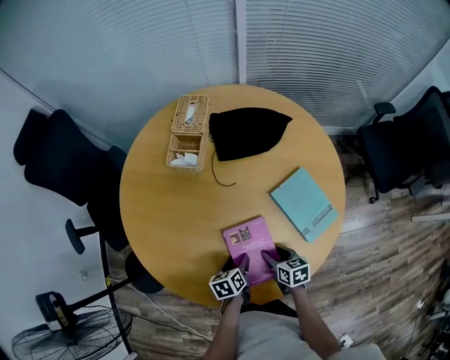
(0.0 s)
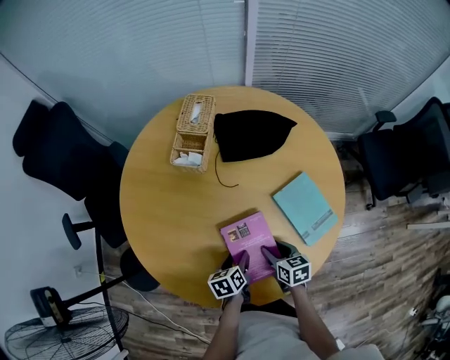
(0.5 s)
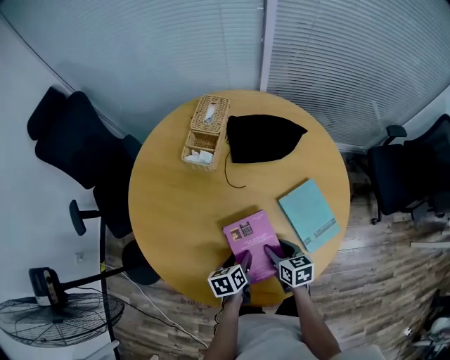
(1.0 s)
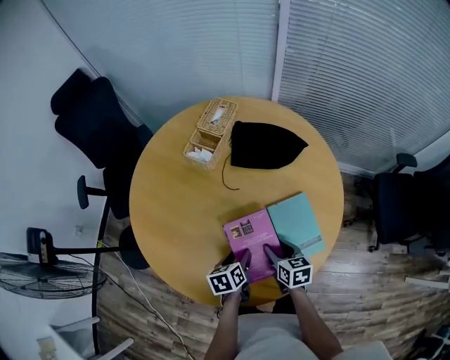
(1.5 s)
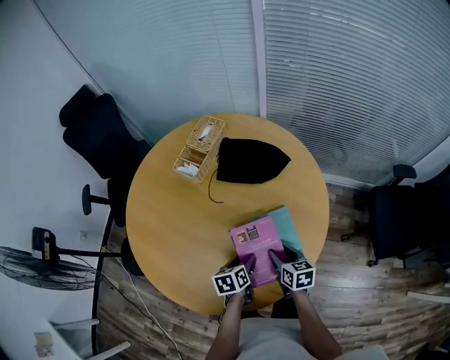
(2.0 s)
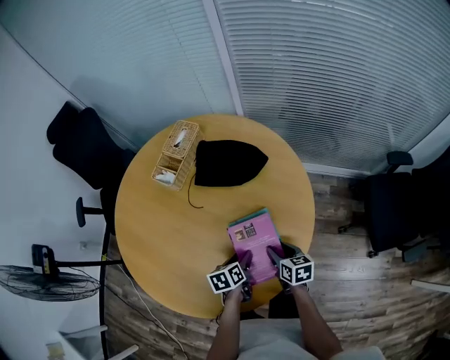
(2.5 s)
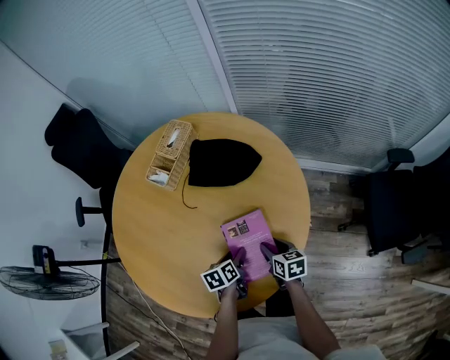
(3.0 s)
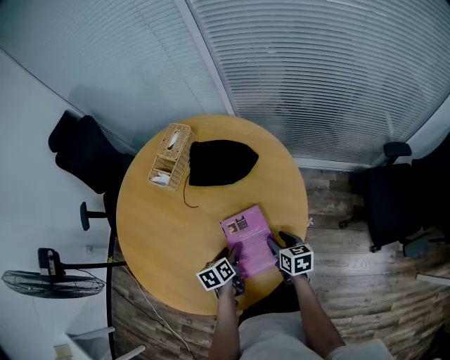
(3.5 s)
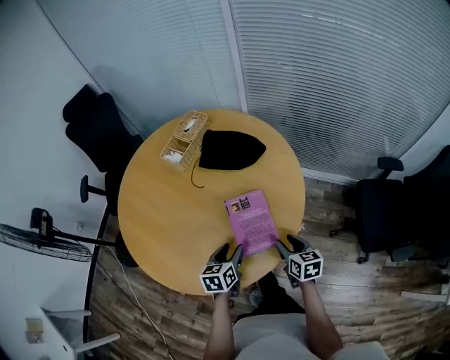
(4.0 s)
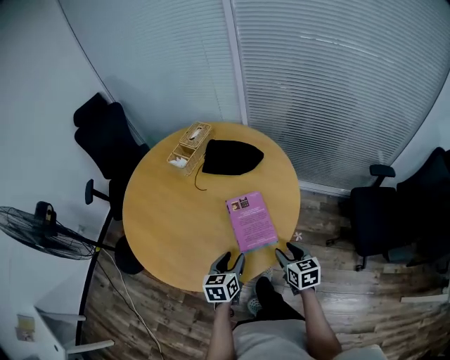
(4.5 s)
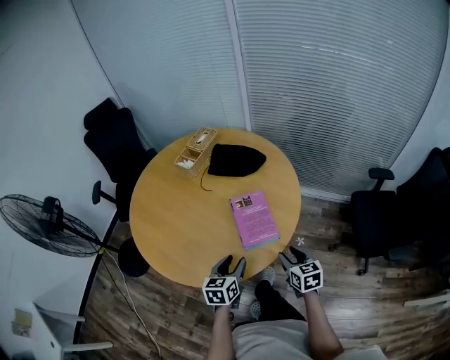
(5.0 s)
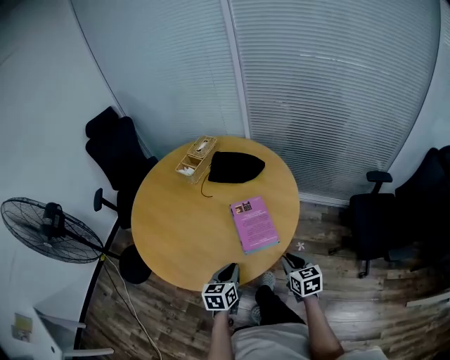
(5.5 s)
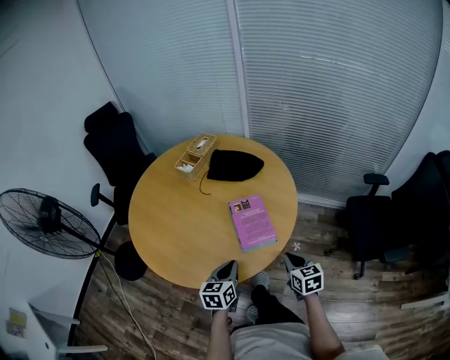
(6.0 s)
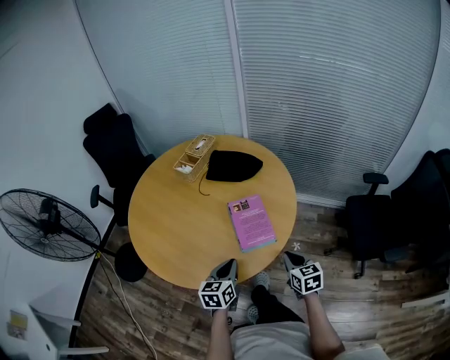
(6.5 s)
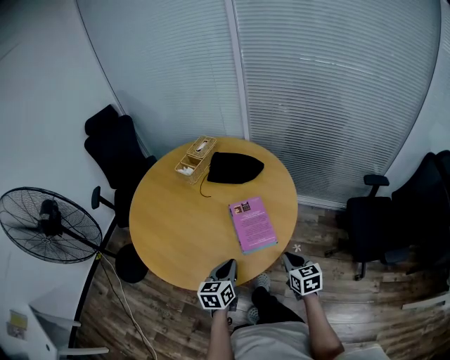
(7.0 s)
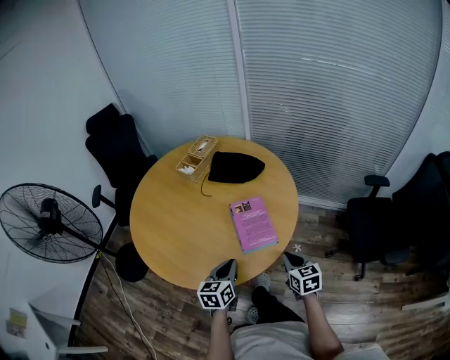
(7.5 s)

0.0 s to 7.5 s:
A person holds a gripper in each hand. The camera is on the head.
0.0 to 2.0 s: The left gripper heads to the right and upward, covering approximately 20 cm; the right gripper heads to the right, forward and upward, covering about 20 cm.
2.0 to 4.0 s: The left gripper moves to the right, about 5 cm. The right gripper moves to the right and backward, roughly 15 cm.
4.0 to 5.5 s: Both grippers move backward, about 10 cm. The left gripper closes its fingers, while the right gripper closes up.
5.5 to 7.5 s: There are only small adjustments of the grippers.

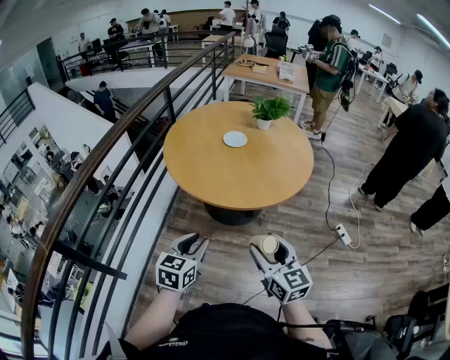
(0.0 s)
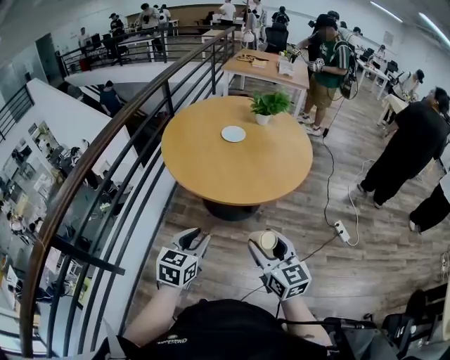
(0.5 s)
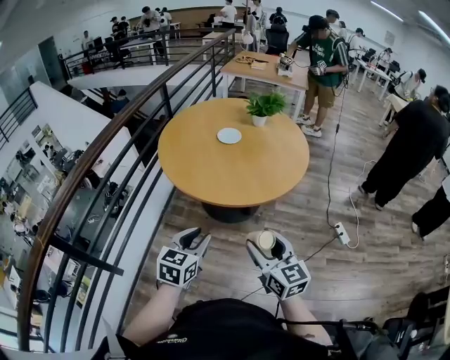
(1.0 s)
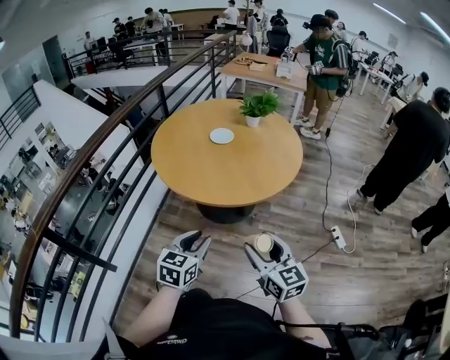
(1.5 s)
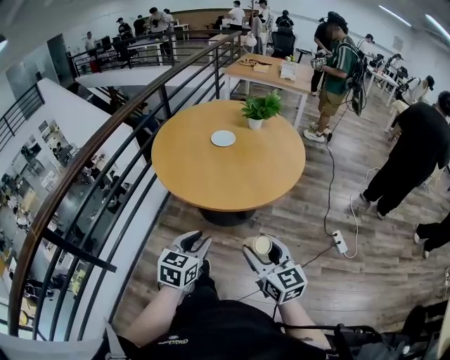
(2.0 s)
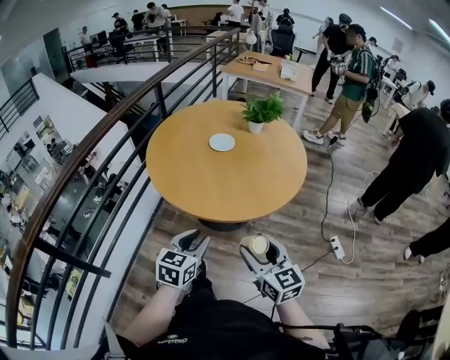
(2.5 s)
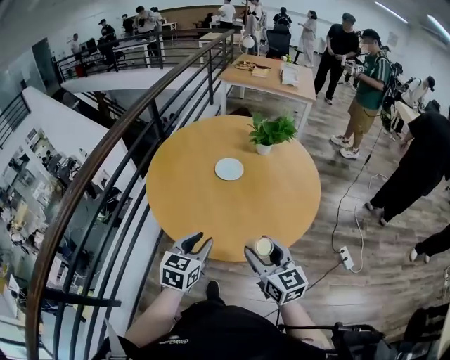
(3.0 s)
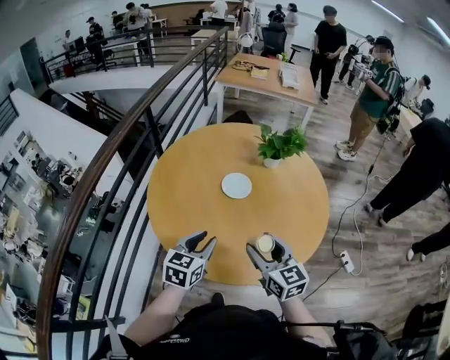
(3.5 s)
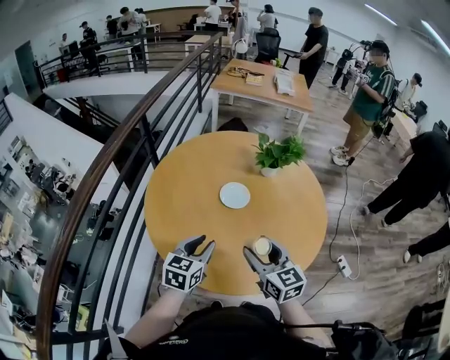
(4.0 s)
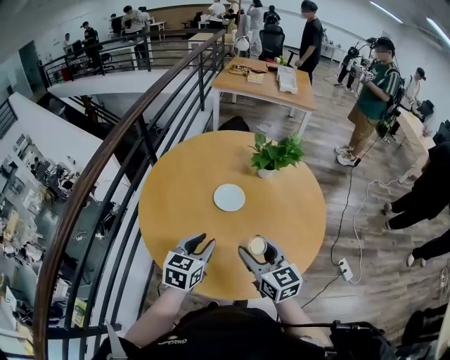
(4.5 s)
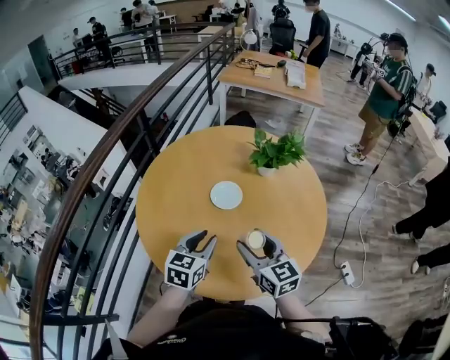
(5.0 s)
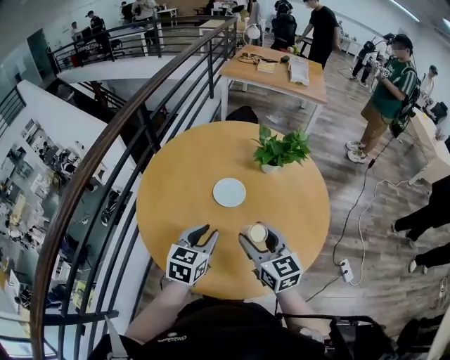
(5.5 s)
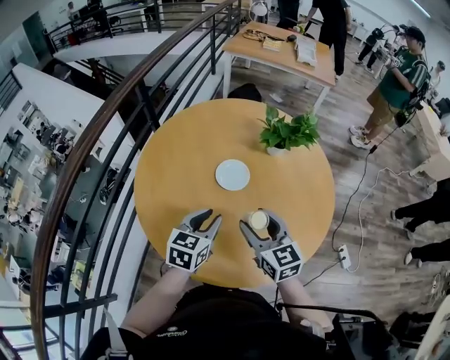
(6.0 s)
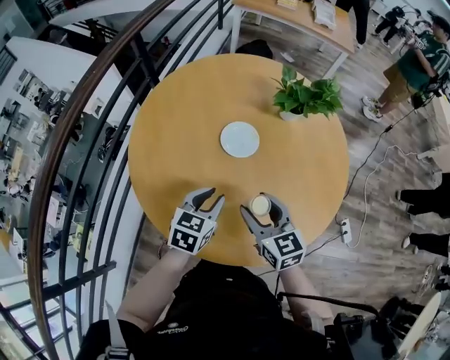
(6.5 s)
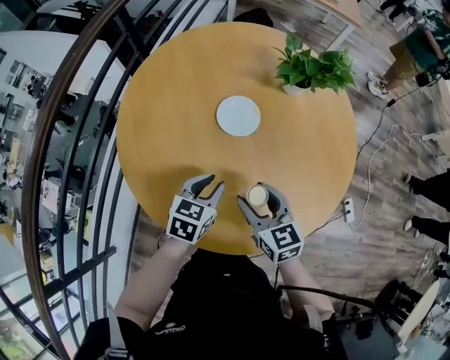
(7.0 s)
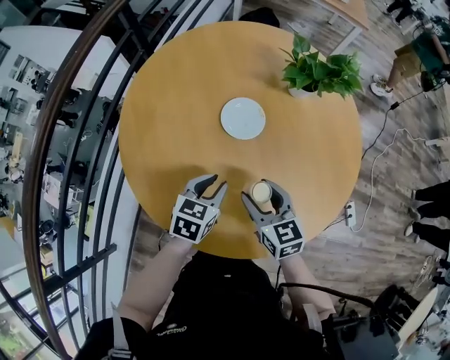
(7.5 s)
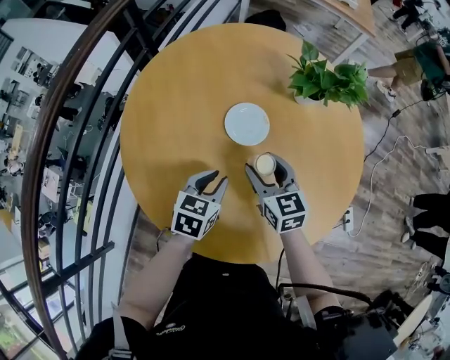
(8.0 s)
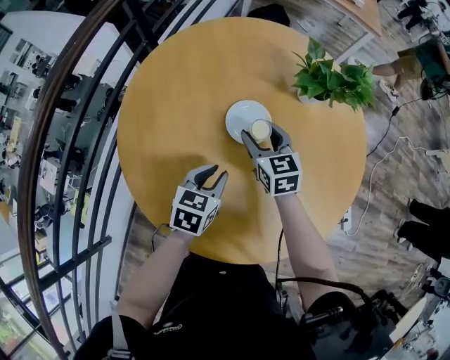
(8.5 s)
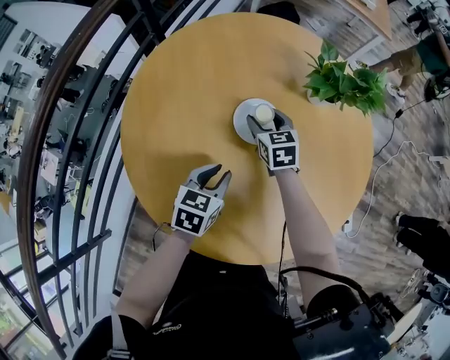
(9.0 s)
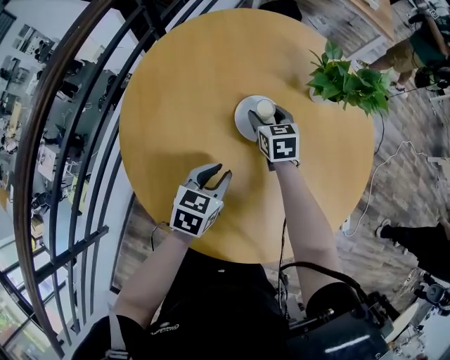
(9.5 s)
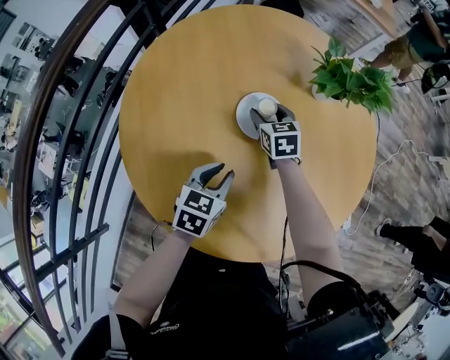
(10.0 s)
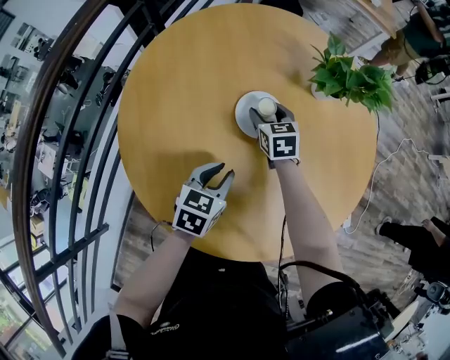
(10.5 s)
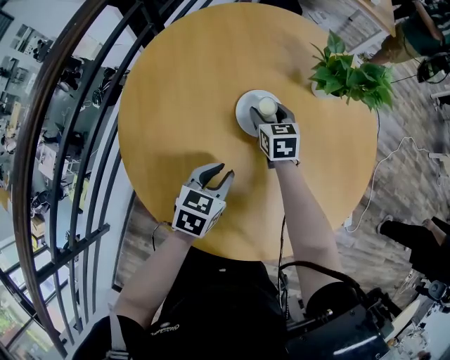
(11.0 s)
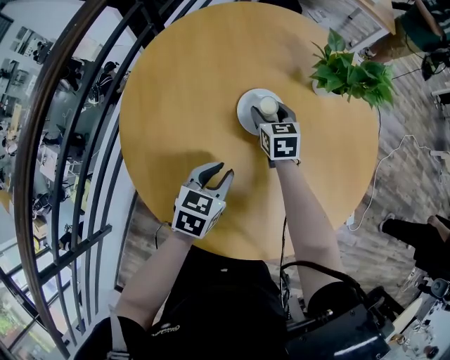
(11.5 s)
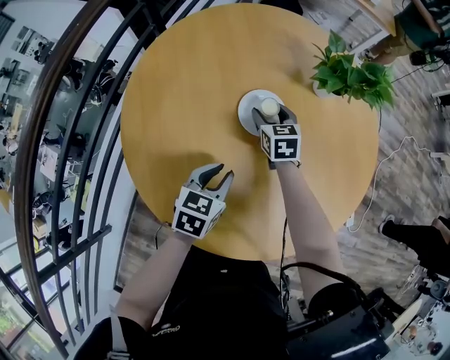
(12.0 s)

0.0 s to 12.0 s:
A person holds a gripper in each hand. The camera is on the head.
0.0 to 2.0 s: Both grippers travel together to the right, roughly 10 cm.
2.0 to 4.0 s: The two grippers travel together, forward, approximately 40 cm.
4.0 to 6.0 s: The left gripper is displaced to the right and forward by some 10 cm. Meanwhile the right gripper shifts some 10 cm forward.
6.0 to 8.0 s: The grippers both shift downward and forward by about 15 cm.
8.0 to 10.0 s: The right gripper heads forward and downward, covering approximately 20 cm.
10.0 to 12.0 s: The two grippers keep their place.

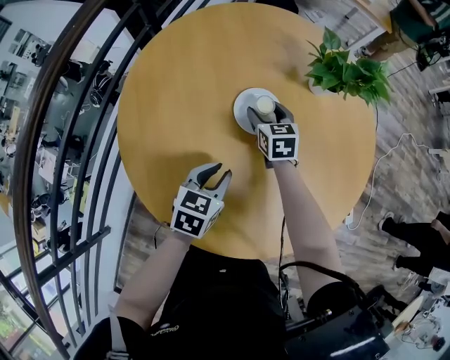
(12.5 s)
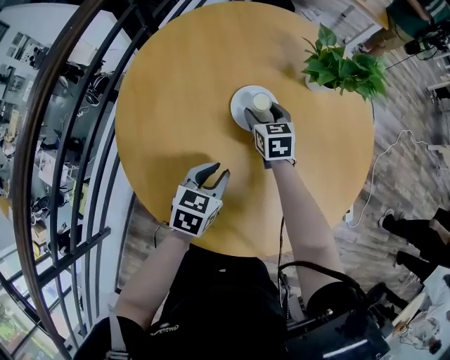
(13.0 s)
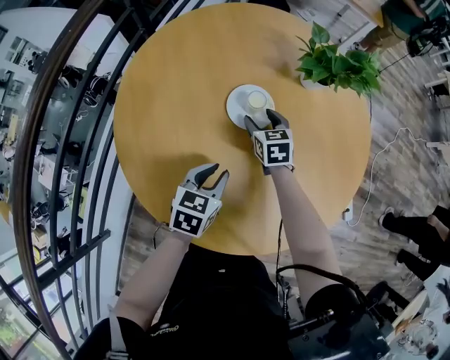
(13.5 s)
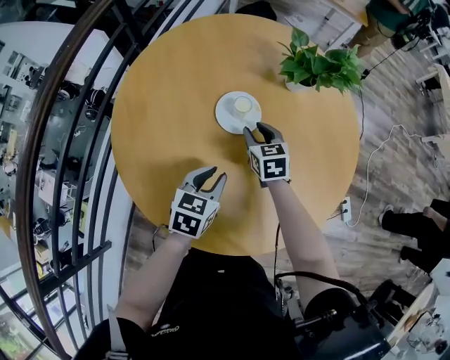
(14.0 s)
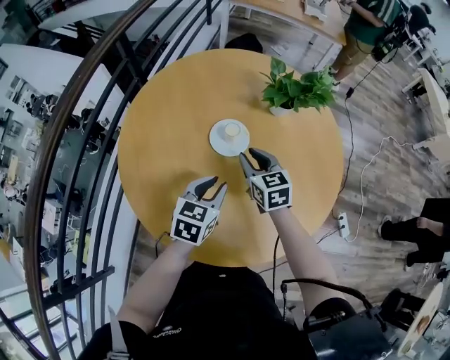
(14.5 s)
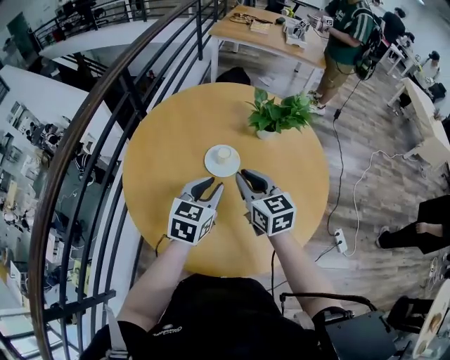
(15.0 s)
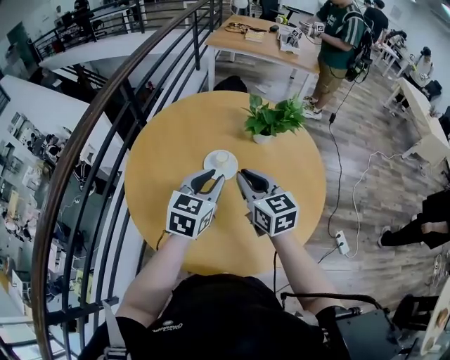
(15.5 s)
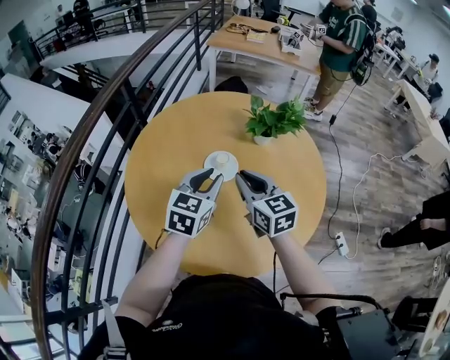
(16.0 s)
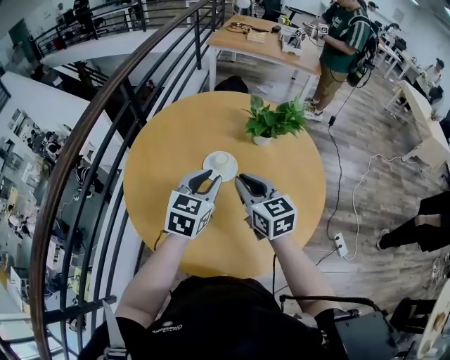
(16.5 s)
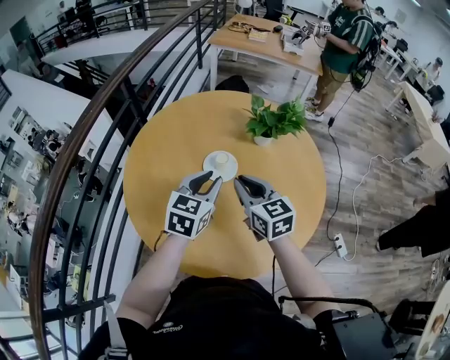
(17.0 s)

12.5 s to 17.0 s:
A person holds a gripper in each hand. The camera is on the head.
12.5 to 14.5 s: The right gripper goes some 15 cm upward, backward and to the right, and closes, while the left gripper travels upward by some 10 cm.
14.5 to 17.0 s: The right gripper heads upward and backward, covering approximately 15 cm. Meanwhile the left gripper moves upward, roughly 15 cm.

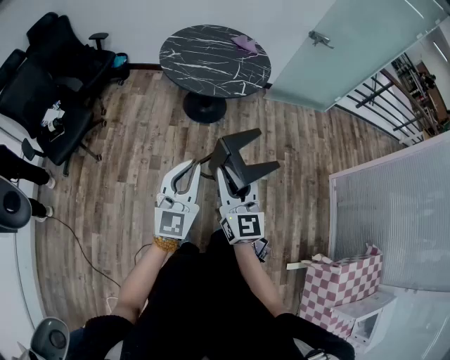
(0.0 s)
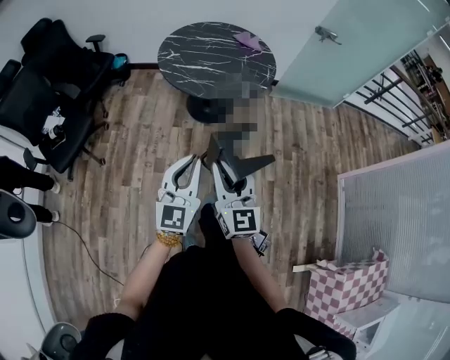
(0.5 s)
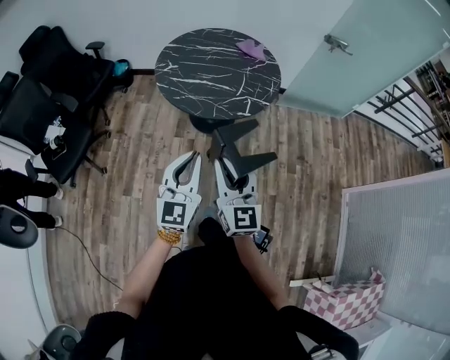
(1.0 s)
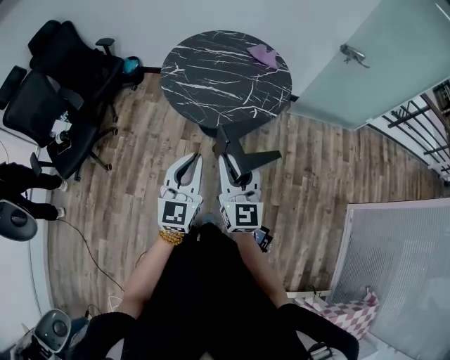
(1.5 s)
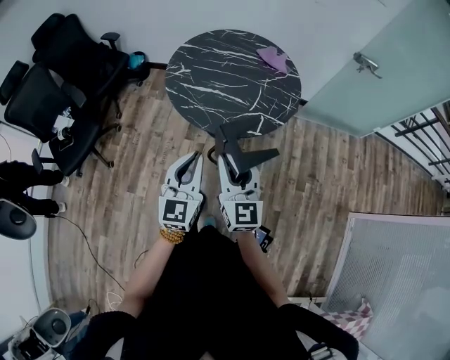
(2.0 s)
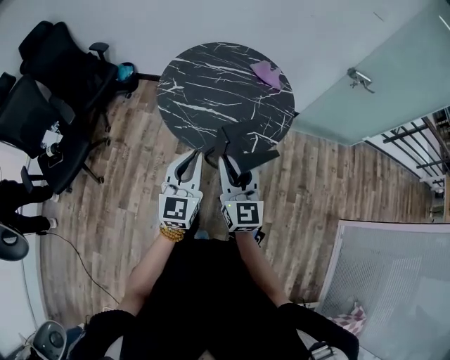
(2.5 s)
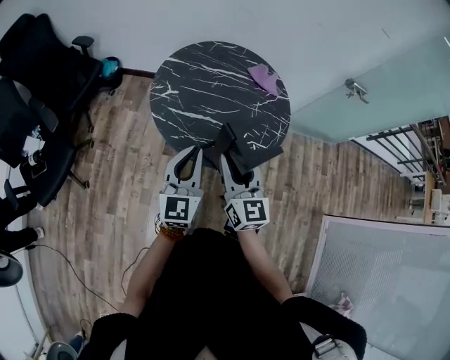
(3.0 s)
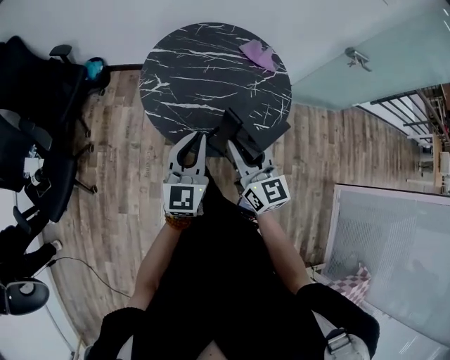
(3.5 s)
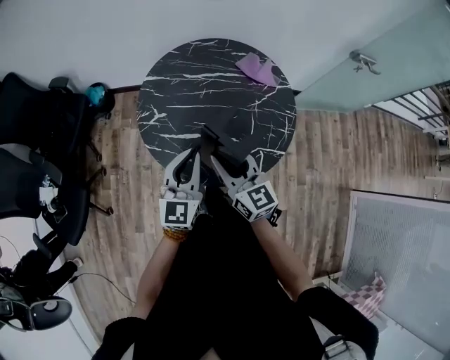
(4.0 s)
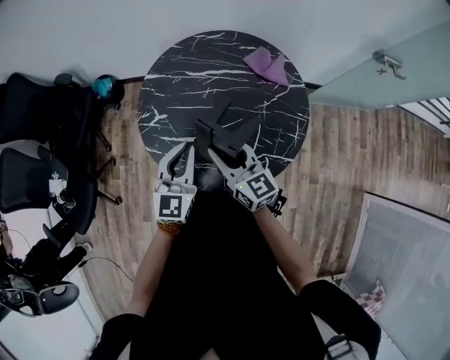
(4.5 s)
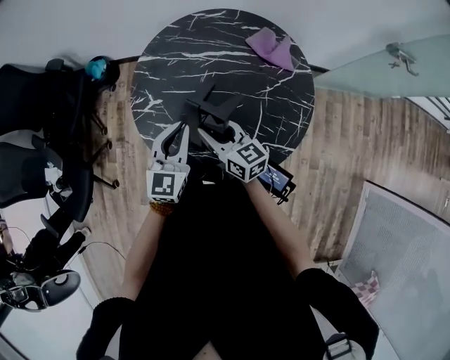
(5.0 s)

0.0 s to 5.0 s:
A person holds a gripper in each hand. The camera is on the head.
0.0 to 2.5 s: Both grippers are carried forward, approximately 40 cm.
2.5 to 5.0 s: The left gripper heads forward, covering about 30 cm. Meanwhile the right gripper travels forward and downward by some 35 cm, and rotates roughly 40 degrees.
